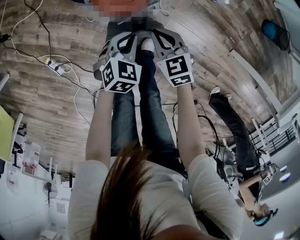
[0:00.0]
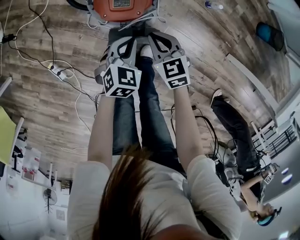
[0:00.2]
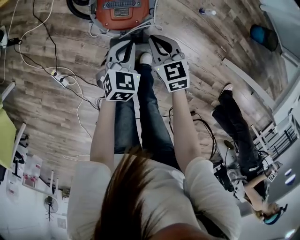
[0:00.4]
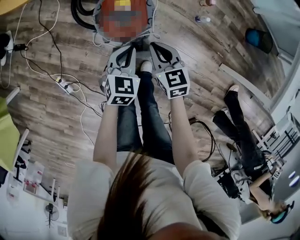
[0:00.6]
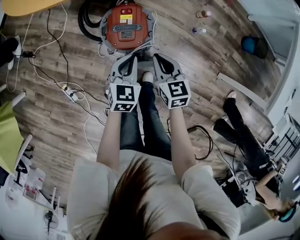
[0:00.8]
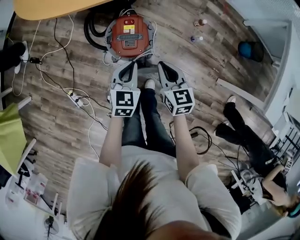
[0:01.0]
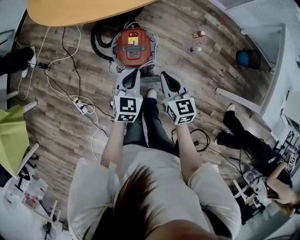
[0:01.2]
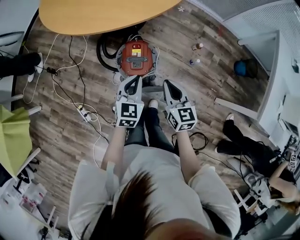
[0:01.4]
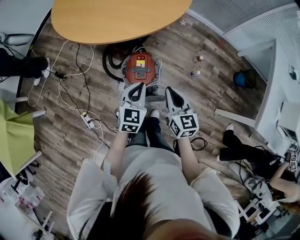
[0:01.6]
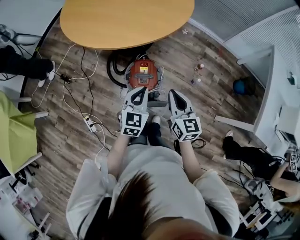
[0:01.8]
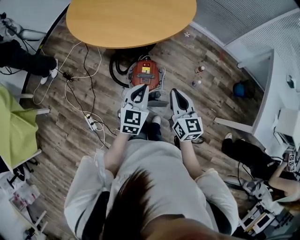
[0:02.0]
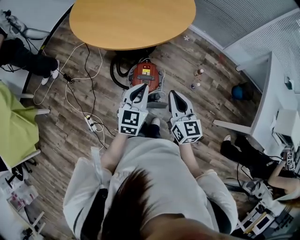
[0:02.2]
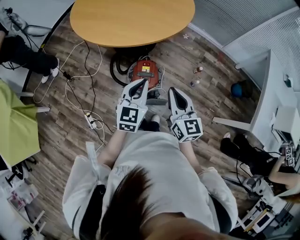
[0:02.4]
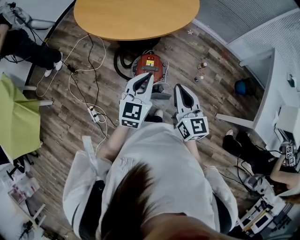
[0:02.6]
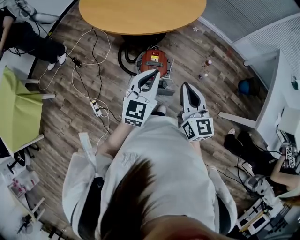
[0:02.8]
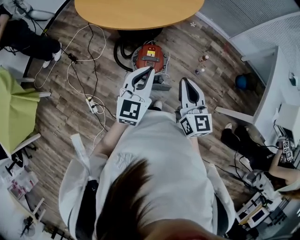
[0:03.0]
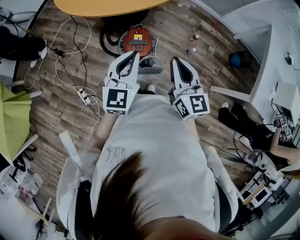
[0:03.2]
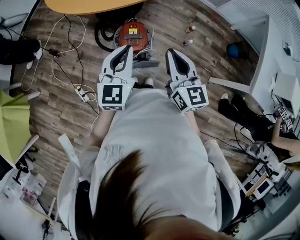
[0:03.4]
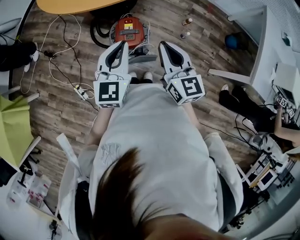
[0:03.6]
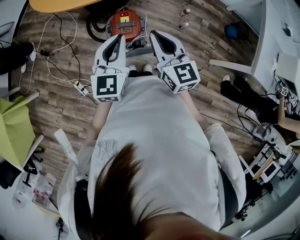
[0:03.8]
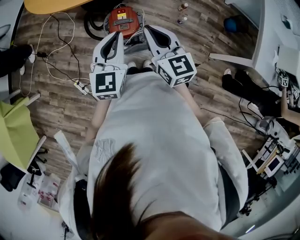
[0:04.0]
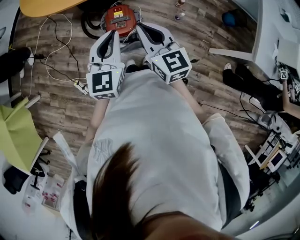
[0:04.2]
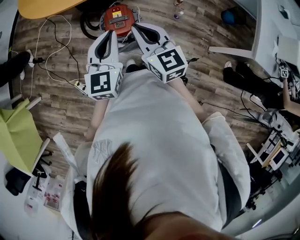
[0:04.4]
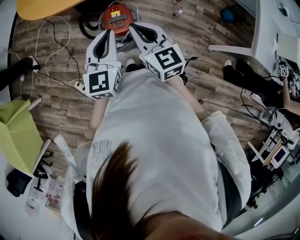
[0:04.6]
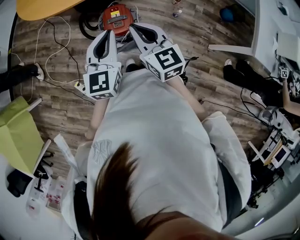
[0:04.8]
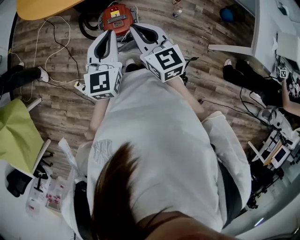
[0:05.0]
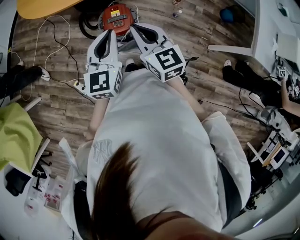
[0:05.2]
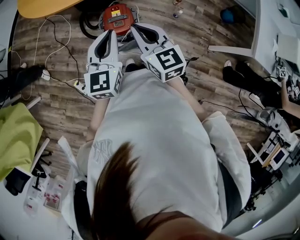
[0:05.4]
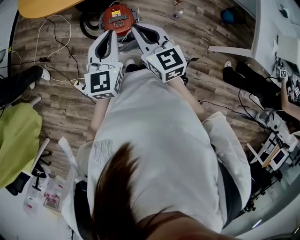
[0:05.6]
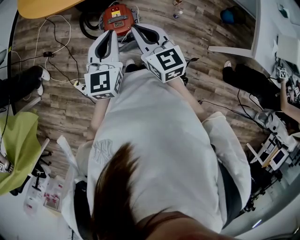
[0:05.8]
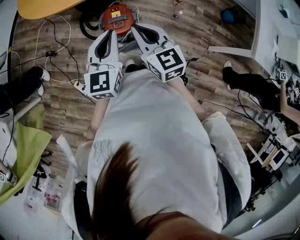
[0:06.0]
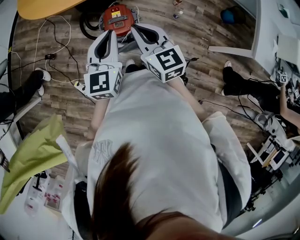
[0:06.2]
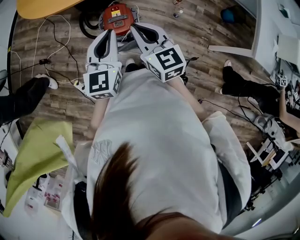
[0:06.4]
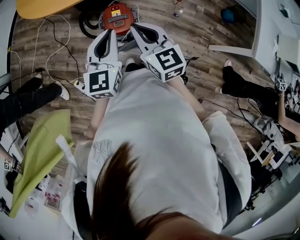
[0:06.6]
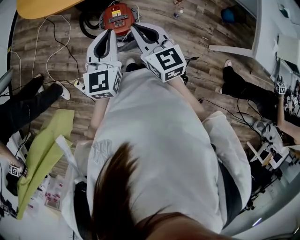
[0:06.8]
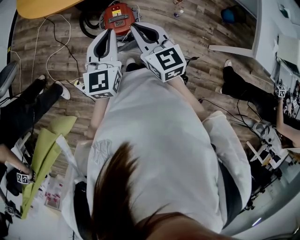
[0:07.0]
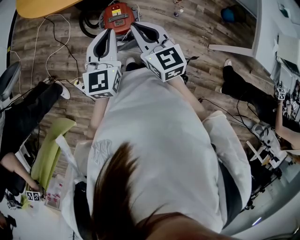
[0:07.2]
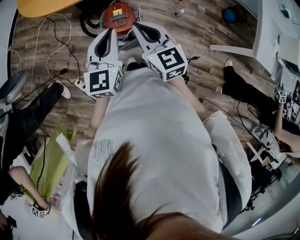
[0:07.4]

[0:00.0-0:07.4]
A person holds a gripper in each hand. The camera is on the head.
0:00.0 to 0:01.4: Both grippers travel together upward, roughly 35 cm. The right gripper swivels some 30 degrees. Meanwhile the left gripper rotates about 30 degrees.
0:01.4 to 0:03.0: Both grippers move upward, approximately 20 cm.
0:03.0 to 0:04.4: The right gripper ends up roughly 5 cm from where it was.
0:04.4 to 0:07.4: The two grippers keep their place.

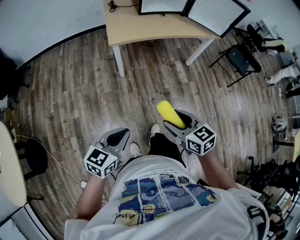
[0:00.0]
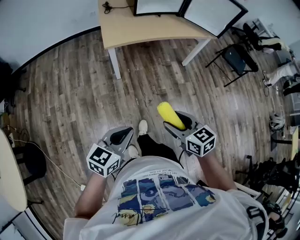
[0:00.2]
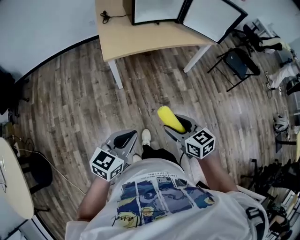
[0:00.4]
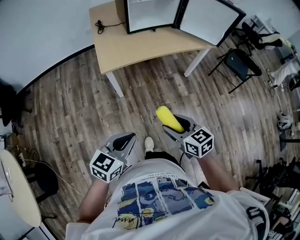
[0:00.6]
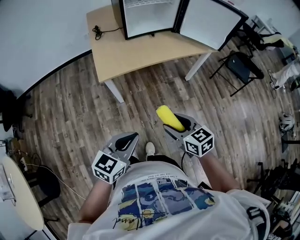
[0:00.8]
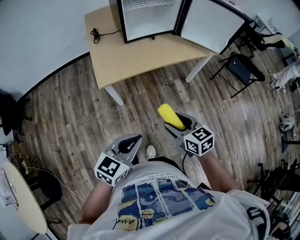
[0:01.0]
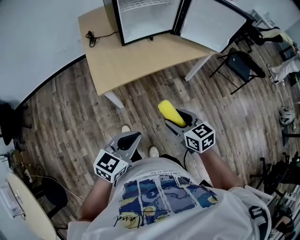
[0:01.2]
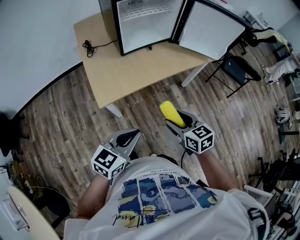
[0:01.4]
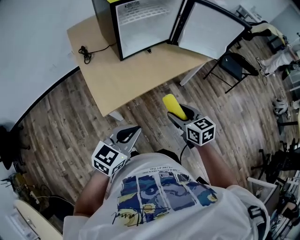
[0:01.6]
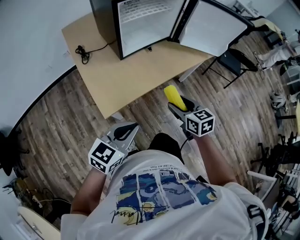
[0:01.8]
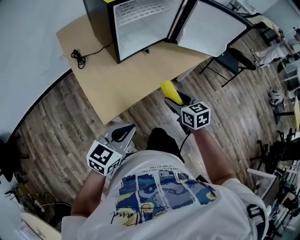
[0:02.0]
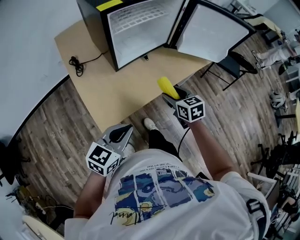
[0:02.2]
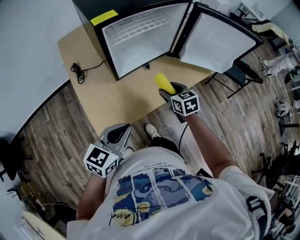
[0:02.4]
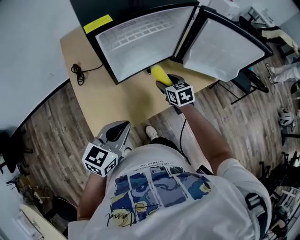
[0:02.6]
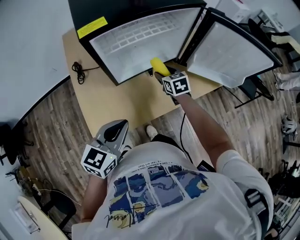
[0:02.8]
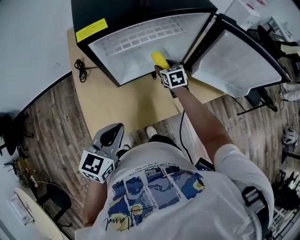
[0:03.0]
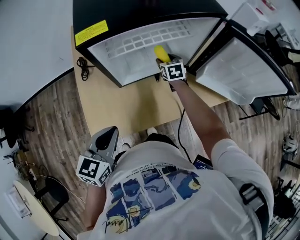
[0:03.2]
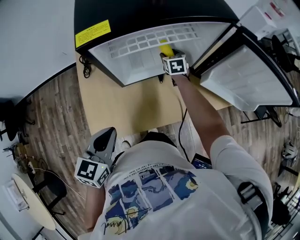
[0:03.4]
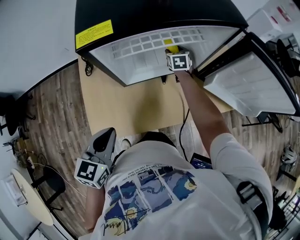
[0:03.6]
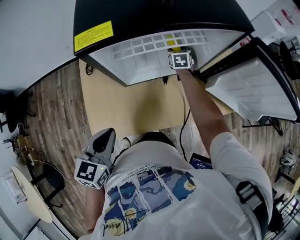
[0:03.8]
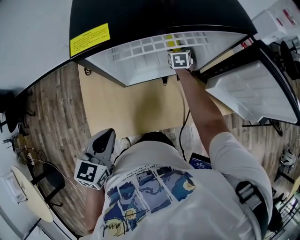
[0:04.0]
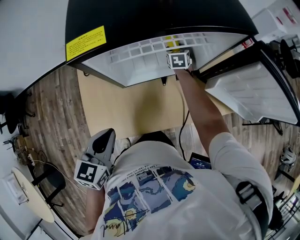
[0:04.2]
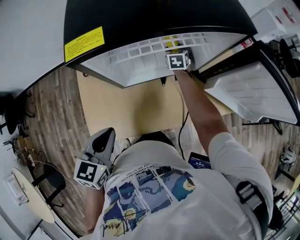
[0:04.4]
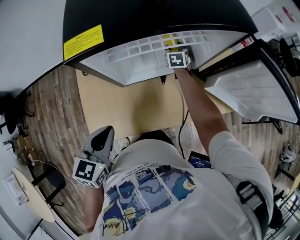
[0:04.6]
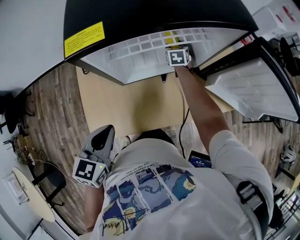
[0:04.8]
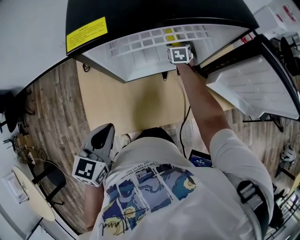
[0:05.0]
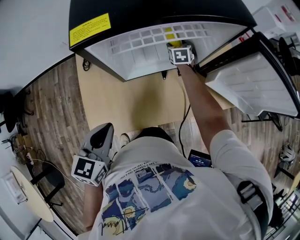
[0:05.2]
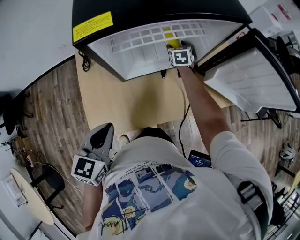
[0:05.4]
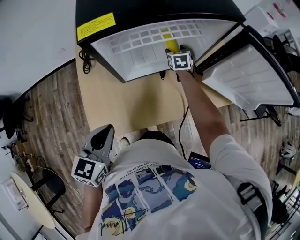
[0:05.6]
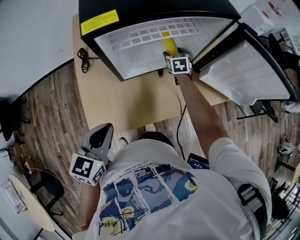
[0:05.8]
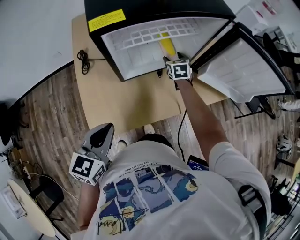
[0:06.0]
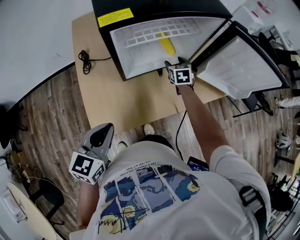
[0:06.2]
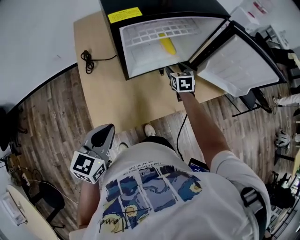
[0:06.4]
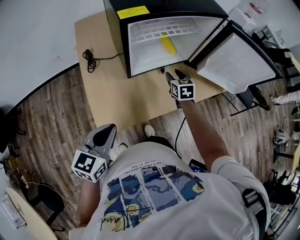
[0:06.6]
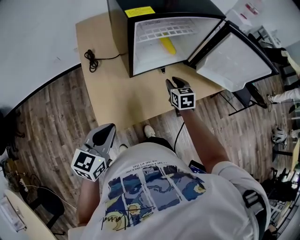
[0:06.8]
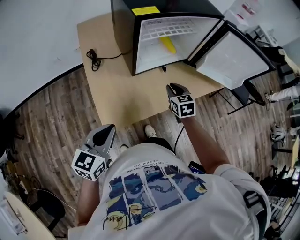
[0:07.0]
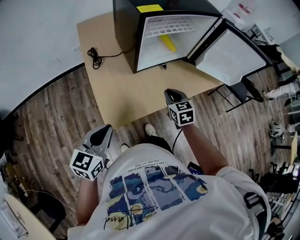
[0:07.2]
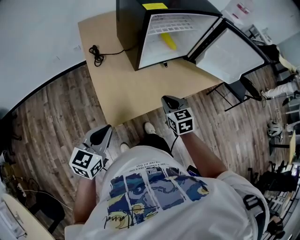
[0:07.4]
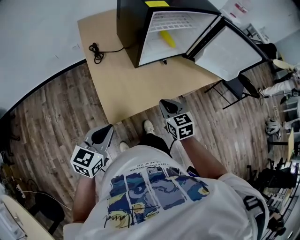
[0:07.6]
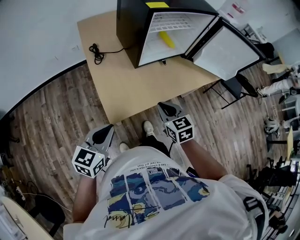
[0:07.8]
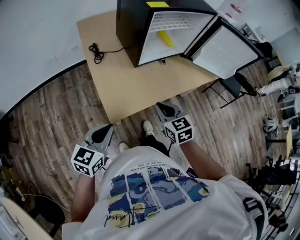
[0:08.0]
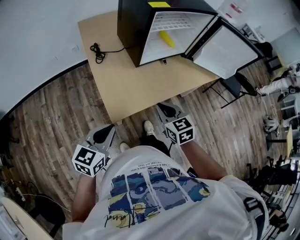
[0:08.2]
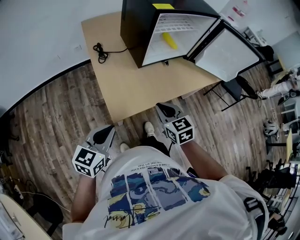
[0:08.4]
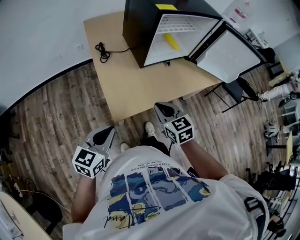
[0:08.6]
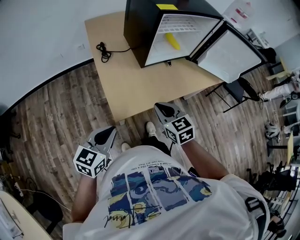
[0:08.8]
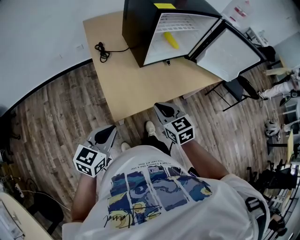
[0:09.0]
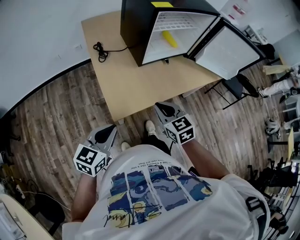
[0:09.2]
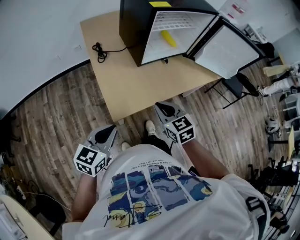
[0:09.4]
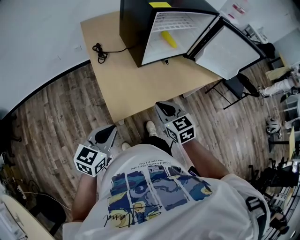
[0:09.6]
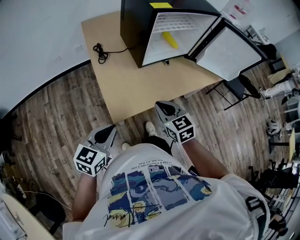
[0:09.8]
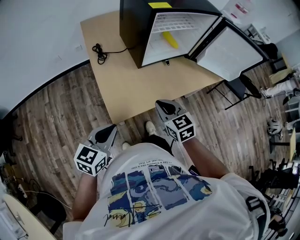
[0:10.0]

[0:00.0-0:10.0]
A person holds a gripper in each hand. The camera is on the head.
0:00.0 to 0:01.4: The two grippers go some 35 cm forward.
0:01.4 to 0:02.8: The left gripper moves forward, roughly 30 cm, while the right gripper moves forward, about 50 cm.
0:02.8 to 0:04.2: The right gripper is displaced forward by approximately 20 cm. Meanwhile the left gripper shifts by approximately 5 cm, and changes its angle by some 20 degrees.
0:04.2 to 0:05.8: The right gripper heads backward, covering approximately 10 cm.
0:05.8 to 0:07.2: The right gripper travels backward by roughly 35 cm, and closes up, while the left gripper moves backward and to the left, some 20 cm.
0:07.2 to 0:08.6: The left gripper heads backward, covering about 5 cm; the right gripper goes approximately 15 cm backward and to the left.
0:08.6 to 0:10.0: The grippers make only small movements.

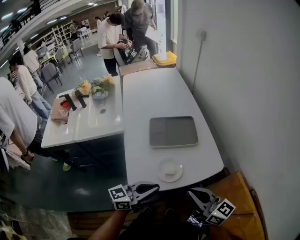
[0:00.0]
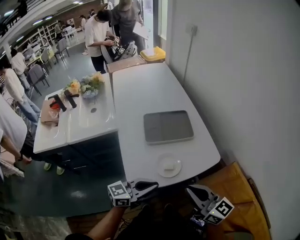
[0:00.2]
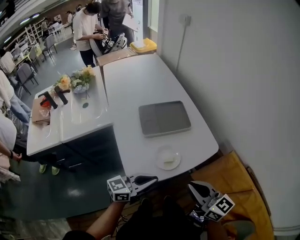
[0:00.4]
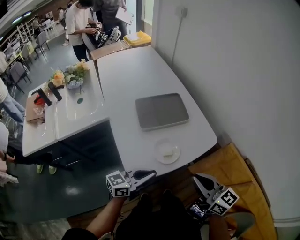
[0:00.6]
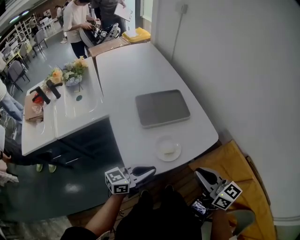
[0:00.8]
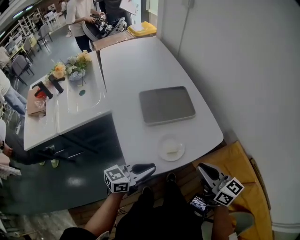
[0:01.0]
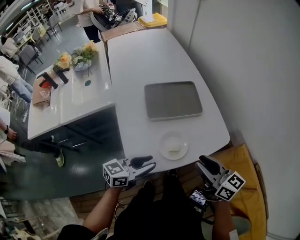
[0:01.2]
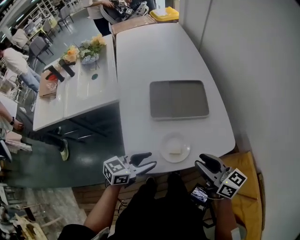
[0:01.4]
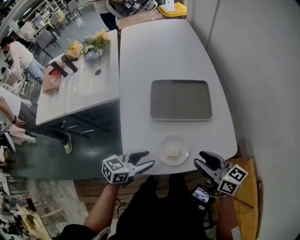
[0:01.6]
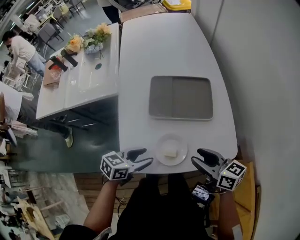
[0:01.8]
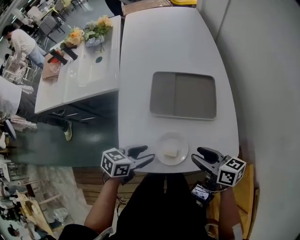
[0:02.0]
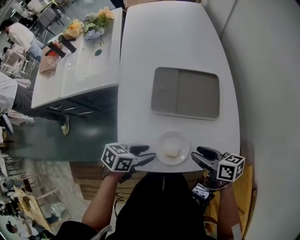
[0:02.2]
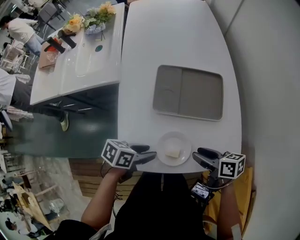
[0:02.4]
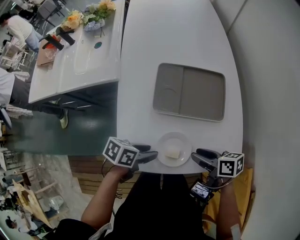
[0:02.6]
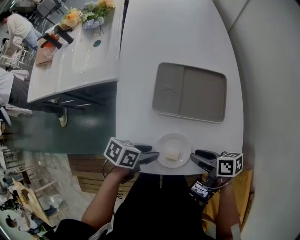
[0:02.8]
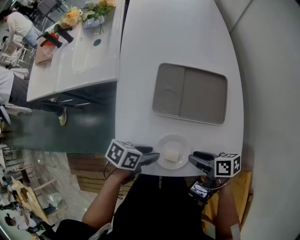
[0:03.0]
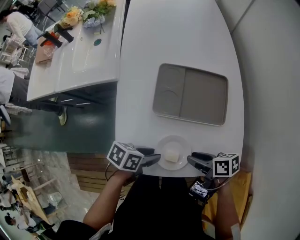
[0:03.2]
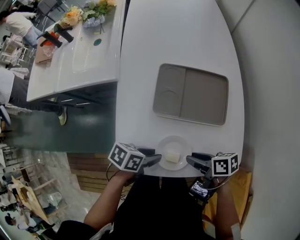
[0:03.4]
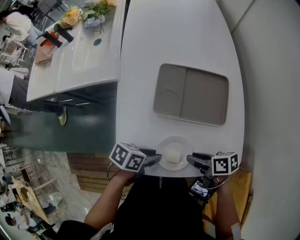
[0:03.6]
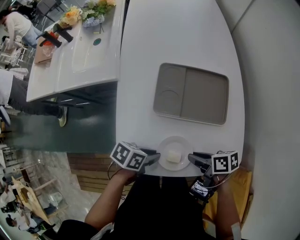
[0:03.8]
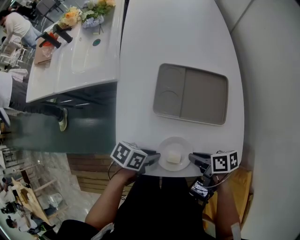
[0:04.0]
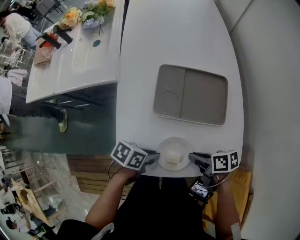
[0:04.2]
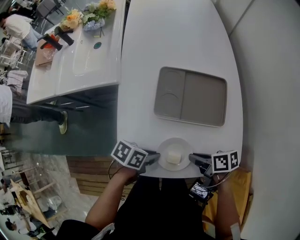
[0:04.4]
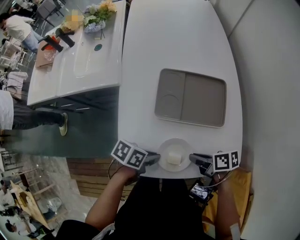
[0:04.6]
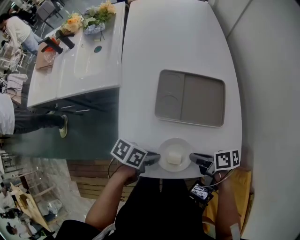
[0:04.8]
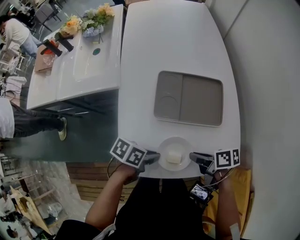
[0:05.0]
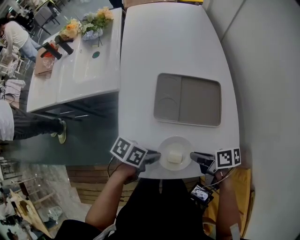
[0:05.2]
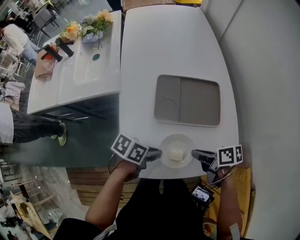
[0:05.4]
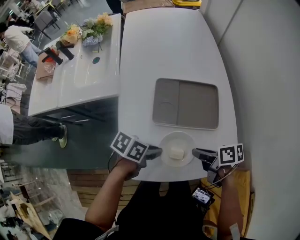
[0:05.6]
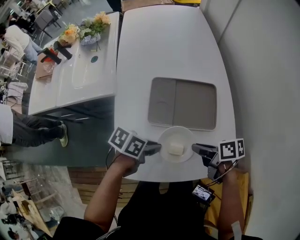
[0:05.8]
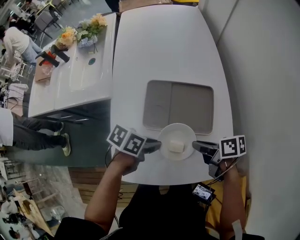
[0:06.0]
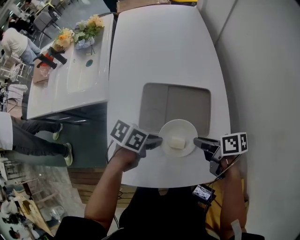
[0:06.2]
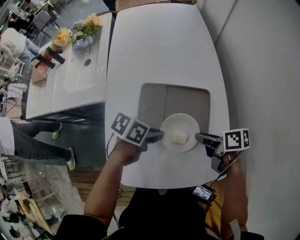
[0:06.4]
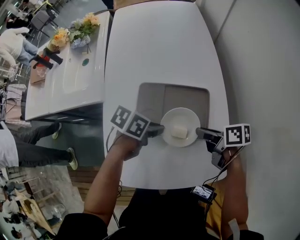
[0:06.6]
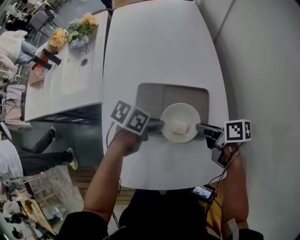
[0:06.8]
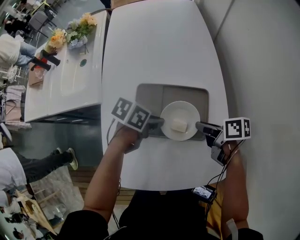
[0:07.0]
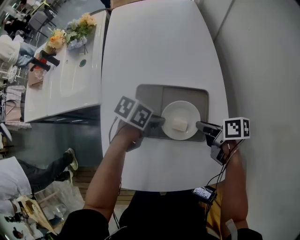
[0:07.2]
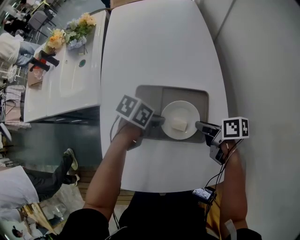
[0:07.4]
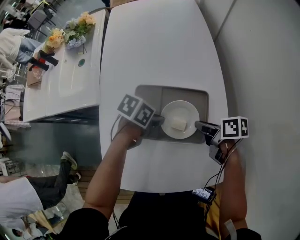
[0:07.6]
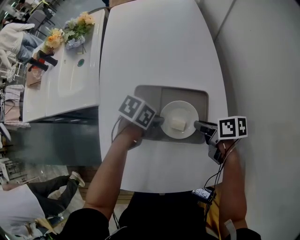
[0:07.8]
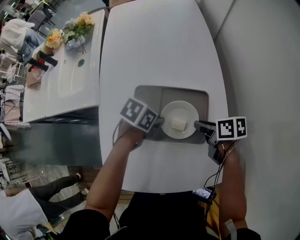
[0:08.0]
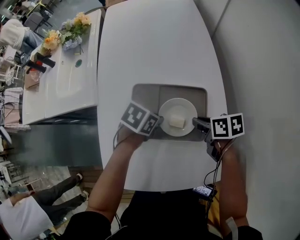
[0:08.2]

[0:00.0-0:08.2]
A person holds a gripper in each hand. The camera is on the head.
0:00.0 to 0:01.6: The left gripper shifts some 15 cm downward, forward and to the left, changes its angle by roughly 30 degrees, and opens its fingers, while the right gripper moves forward and downward, roughly 15 cm, changes its angle by approximately 20 degrees, and opens its fingers.
0:01.6 to 0:03.2: The right gripper is displaced downward by roughly 15 cm, and rotates roughly 50 degrees, while the left gripper goes some 10 cm downward, and changes its angle by some 40 degrees.
0:03.2 to 0:05.0: The left gripper closes its fingers; the right gripper closes.
0:05.0 to 0:06.6: The left gripper moves about 20 cm. Meanwhile the right gripper shifts by approximately 20 cm.
0:06.6 to 0:08.2: The right gripper moves roughly 5 cm, while the left gripper moves about 5 cm.
